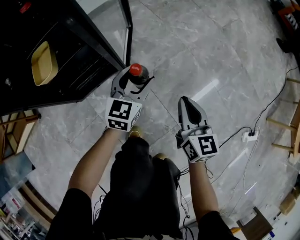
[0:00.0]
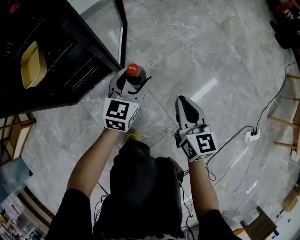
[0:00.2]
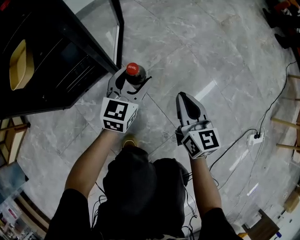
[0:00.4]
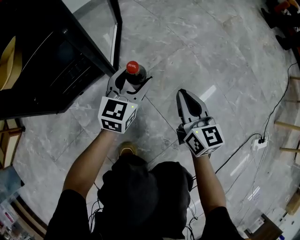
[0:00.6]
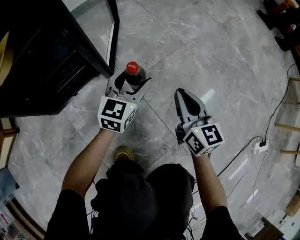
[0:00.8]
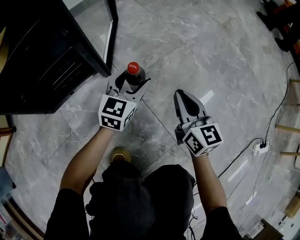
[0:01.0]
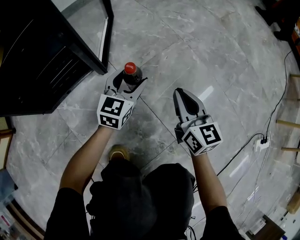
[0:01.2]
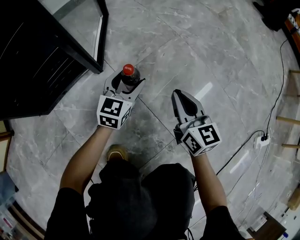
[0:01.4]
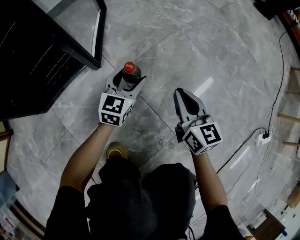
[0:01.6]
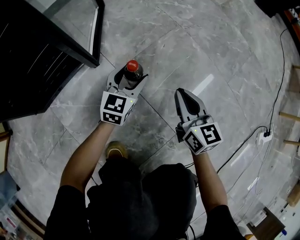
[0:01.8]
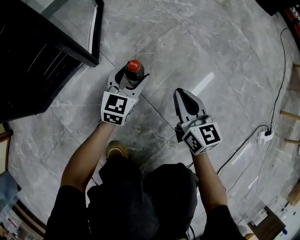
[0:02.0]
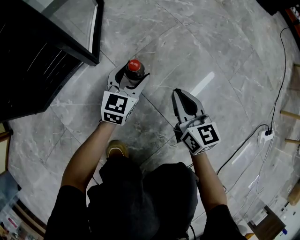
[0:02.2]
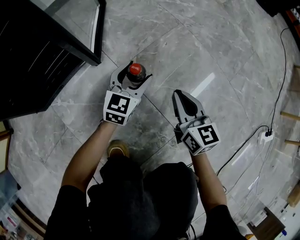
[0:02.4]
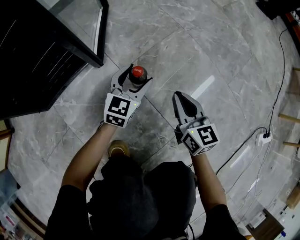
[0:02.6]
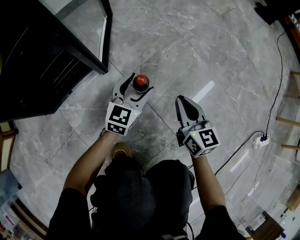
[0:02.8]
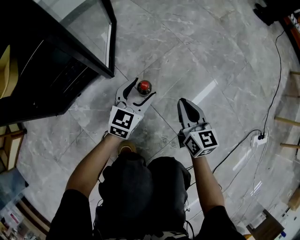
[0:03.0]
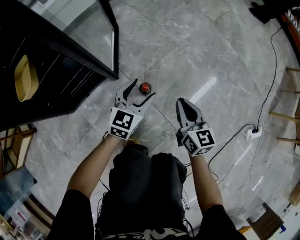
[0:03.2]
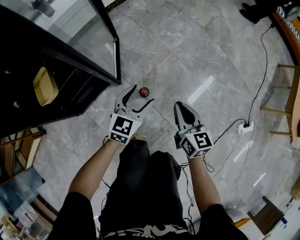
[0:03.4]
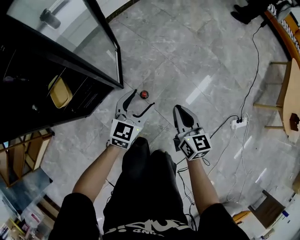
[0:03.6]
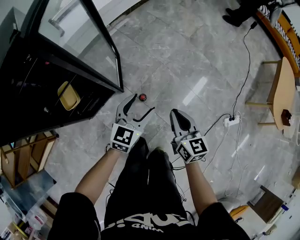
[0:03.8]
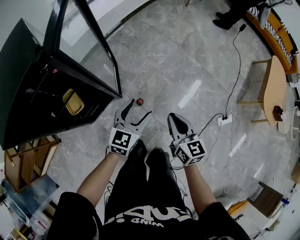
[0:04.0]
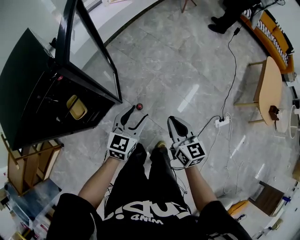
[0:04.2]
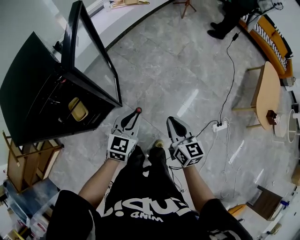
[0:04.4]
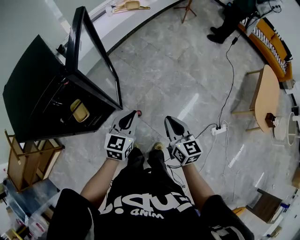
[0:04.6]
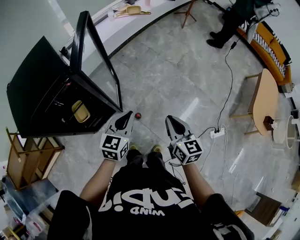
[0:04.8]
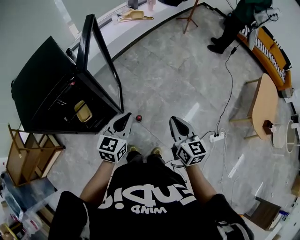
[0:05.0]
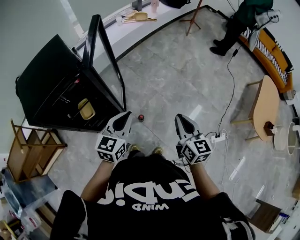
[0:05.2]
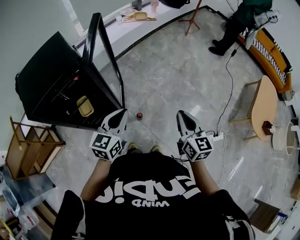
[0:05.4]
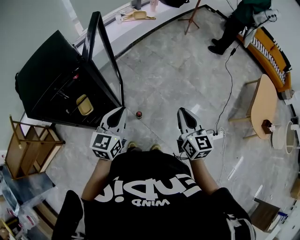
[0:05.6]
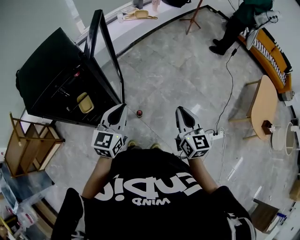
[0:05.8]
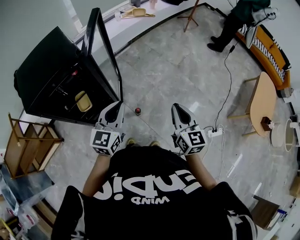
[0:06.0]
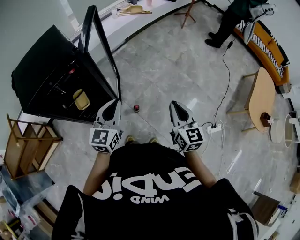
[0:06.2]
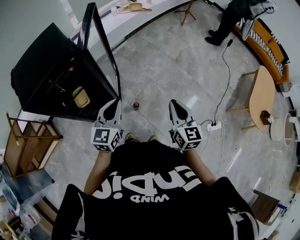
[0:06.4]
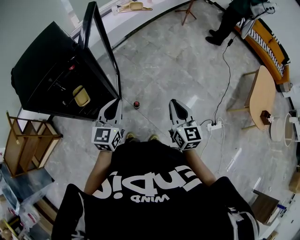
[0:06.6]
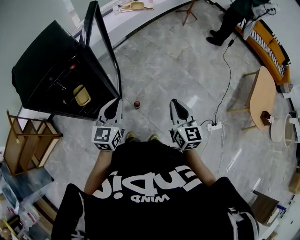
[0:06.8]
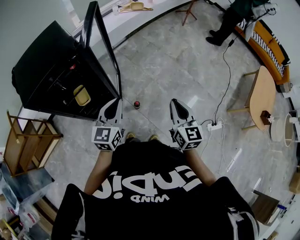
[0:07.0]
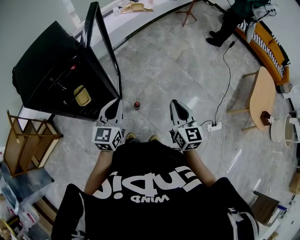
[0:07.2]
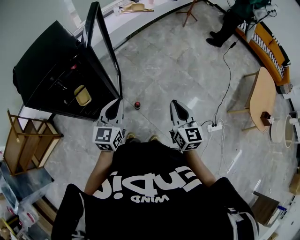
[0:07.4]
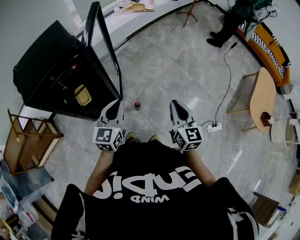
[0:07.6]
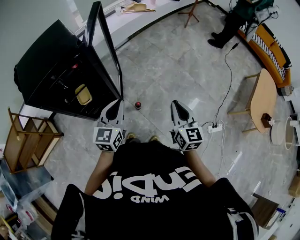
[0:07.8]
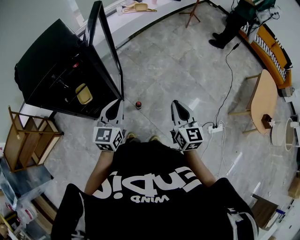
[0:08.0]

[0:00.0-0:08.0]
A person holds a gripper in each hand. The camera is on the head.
0:00.0 to 0:01.6: The two grippers go about 25 cm downward.
0:01.6 to 0:03.2: The two grippers go some 15 cm upward.
0:03.2 to 0:04.8: Both grippers travel together upward, about 60 cm. The left gripper closes.
0:04.8 to 0:06.4: The right gripper ends up some 5 cm from where it was, while the left gripper is displaced backward and upward by roughly 10 cm.
0:06.4 to 0:08.0: The grippers make only small movements.

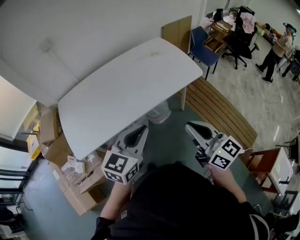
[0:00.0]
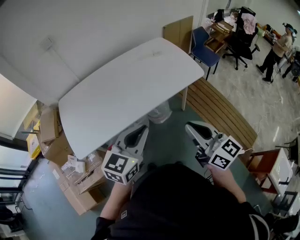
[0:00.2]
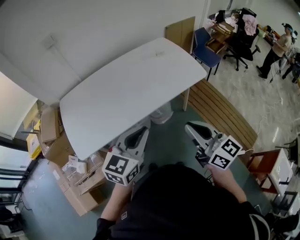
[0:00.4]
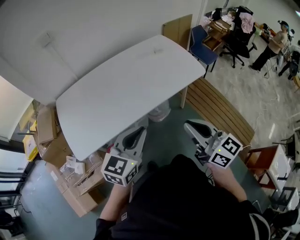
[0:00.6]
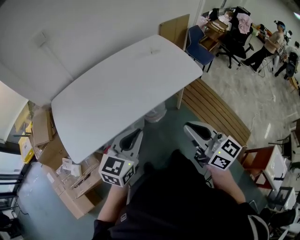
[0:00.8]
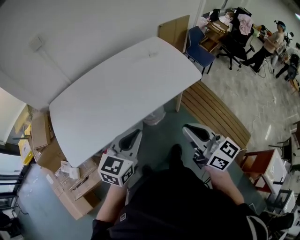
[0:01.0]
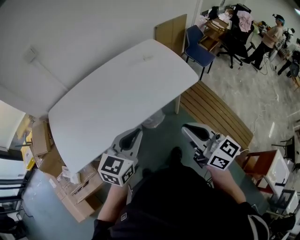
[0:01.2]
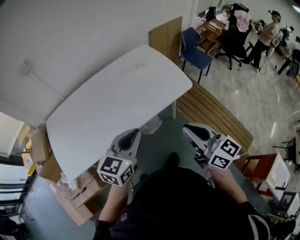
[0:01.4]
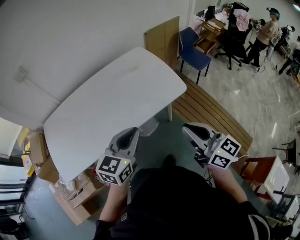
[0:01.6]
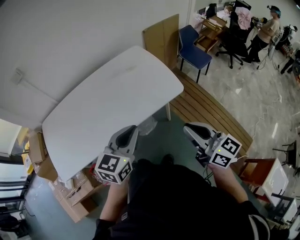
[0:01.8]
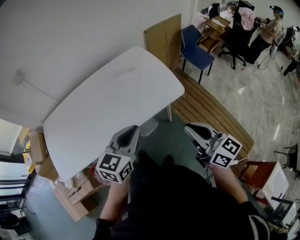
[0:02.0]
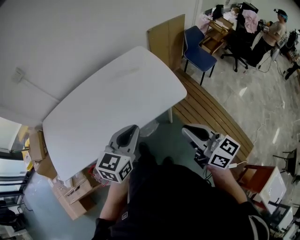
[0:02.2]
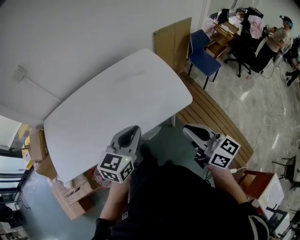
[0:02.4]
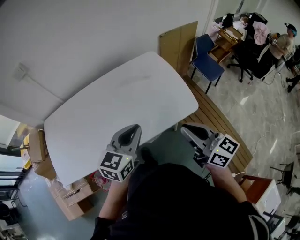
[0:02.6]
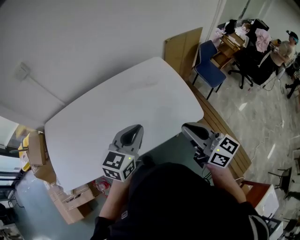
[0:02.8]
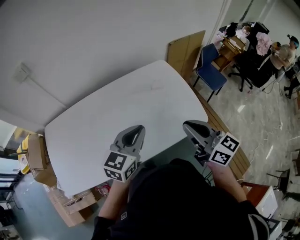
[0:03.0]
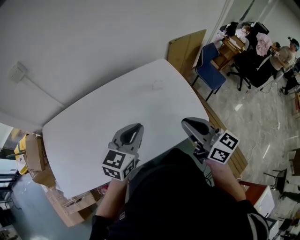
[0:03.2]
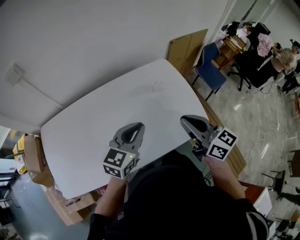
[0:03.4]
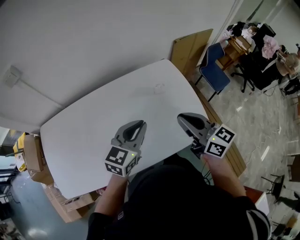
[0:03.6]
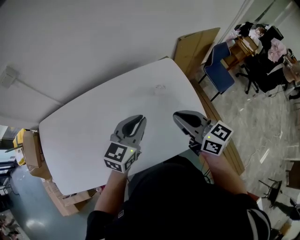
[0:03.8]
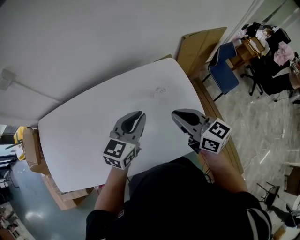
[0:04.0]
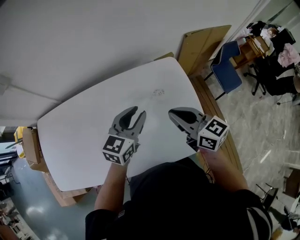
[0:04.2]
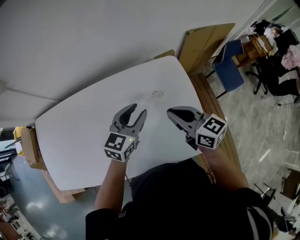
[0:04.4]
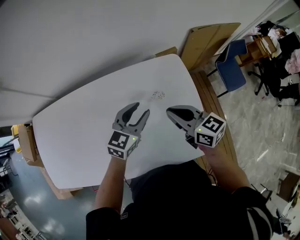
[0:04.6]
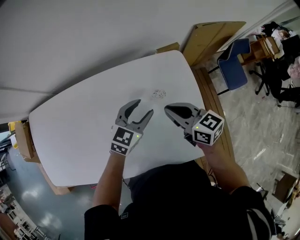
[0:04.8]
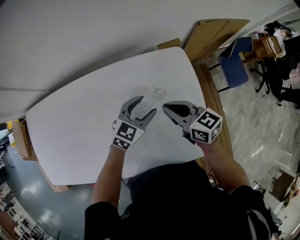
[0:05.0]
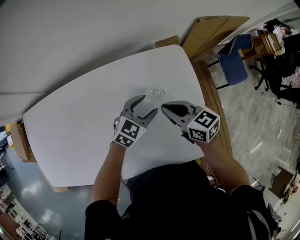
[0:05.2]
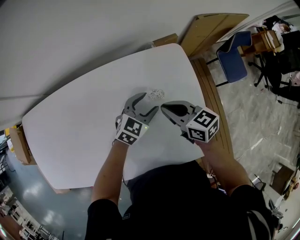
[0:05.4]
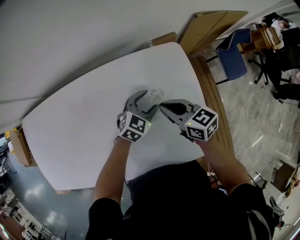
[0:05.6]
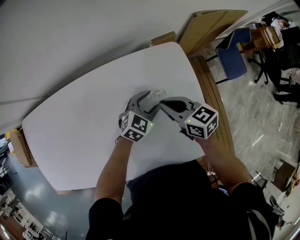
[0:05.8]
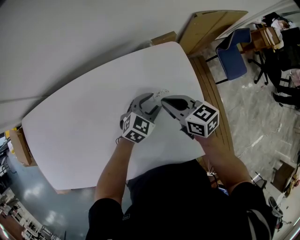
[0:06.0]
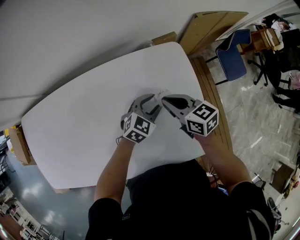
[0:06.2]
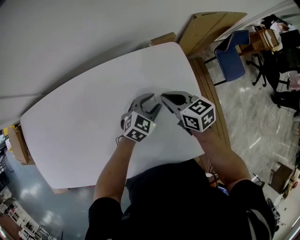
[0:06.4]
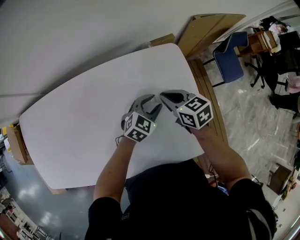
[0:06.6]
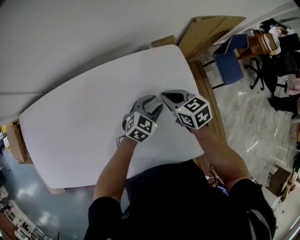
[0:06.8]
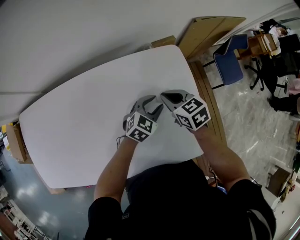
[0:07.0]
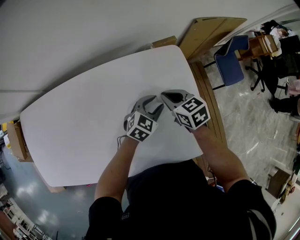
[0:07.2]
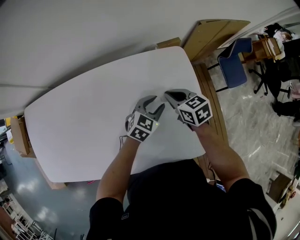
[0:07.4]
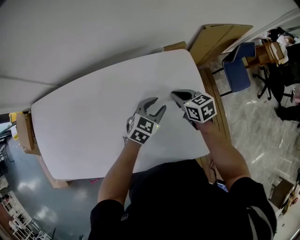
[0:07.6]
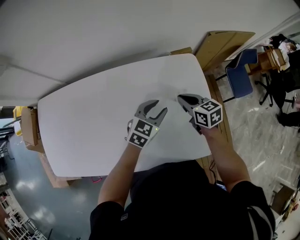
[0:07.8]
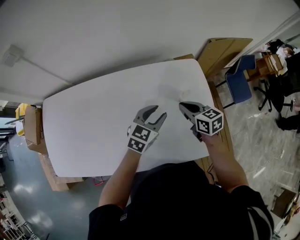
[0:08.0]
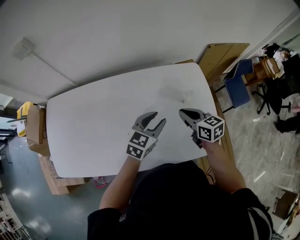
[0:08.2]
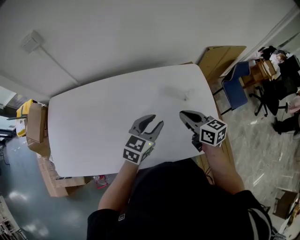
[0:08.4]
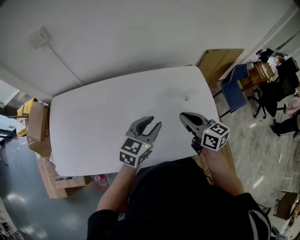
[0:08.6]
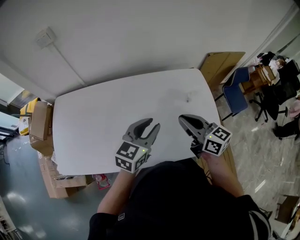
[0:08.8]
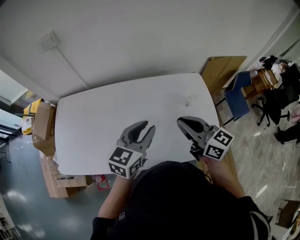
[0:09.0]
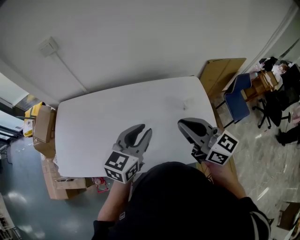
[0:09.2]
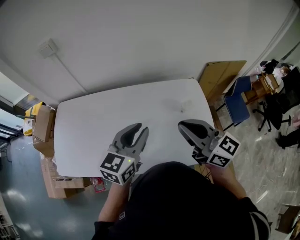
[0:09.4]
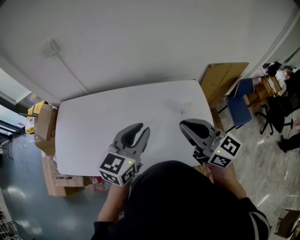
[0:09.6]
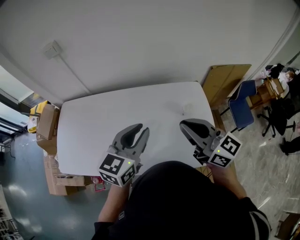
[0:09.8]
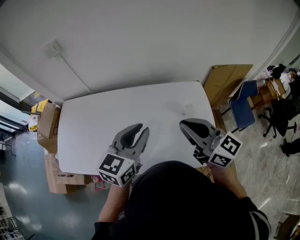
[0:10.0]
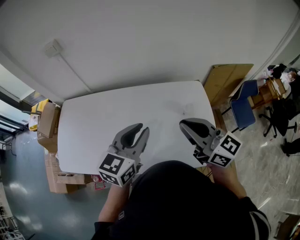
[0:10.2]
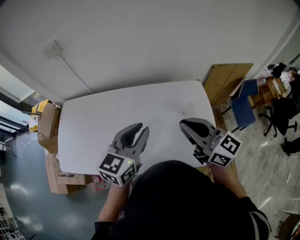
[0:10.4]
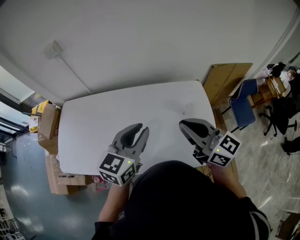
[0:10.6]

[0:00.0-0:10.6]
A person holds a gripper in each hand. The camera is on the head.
0:00.0 to 0:01.6: The left gripper is displaced forward and to the right by roughly 20 cm. The right gripper heads to the right and forward, covering about 20 cm.
0:01.6 to 0:03.0: Both grippers move forward, about 20 cm.
0:03.0 to 0:04.6: The two grippers go approximately 30 cm forward and downward. The left gripper opens its fingers. Meanwhile the right gripper turns by approximately 30 degrees.
0:04.6 to 0:06.0: The right gripper travels downward and forward by approximately 10 cm. The left gripper is displaced downward and to the right by roughly 15 cm, and turns by about 20 degrees.
0:06.0 to 0:07.6: The left gripper shifts by about 5 cm.
0:07.6 to 0:09.0: The left gripper goes approximately 35 cm upward, to the left and backward, and swivels about 30 degrees. Meanwhile the right gripper is displaced upward, backward and to the left by roughly 35 cm, and angles its fingers upward, by some 40 degrees.
0:09.0 to 0:10.6: The left gripper goes some 5 cm upward; the right gripper heads upward and to the right, covering approximately 10 cm.

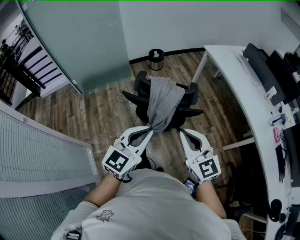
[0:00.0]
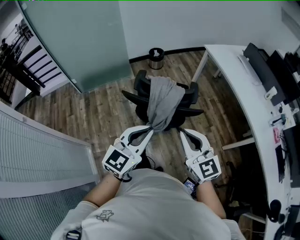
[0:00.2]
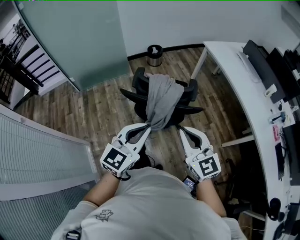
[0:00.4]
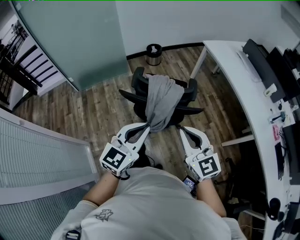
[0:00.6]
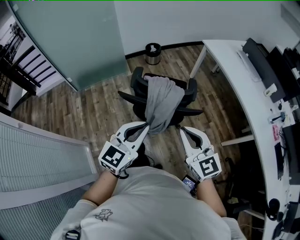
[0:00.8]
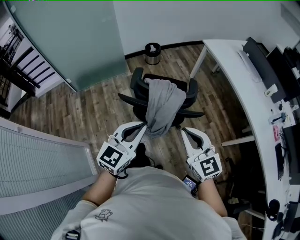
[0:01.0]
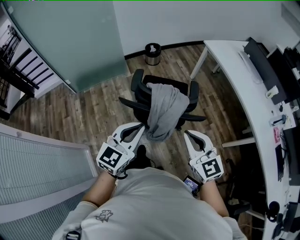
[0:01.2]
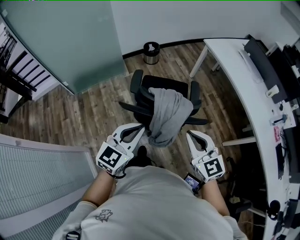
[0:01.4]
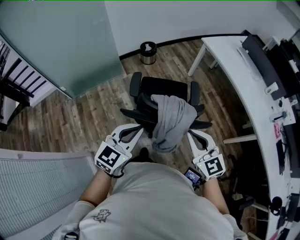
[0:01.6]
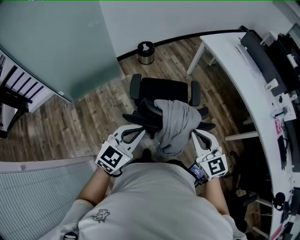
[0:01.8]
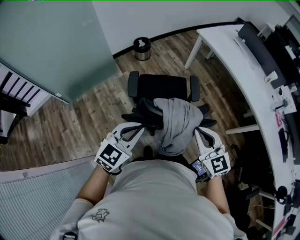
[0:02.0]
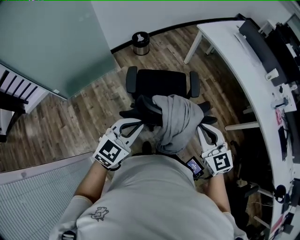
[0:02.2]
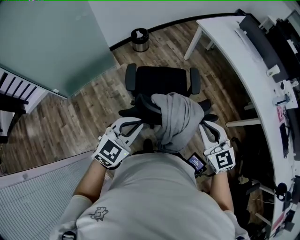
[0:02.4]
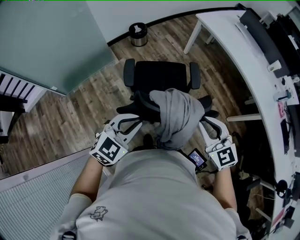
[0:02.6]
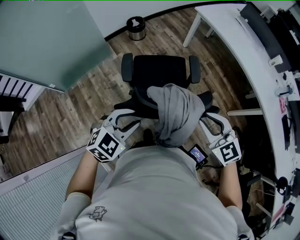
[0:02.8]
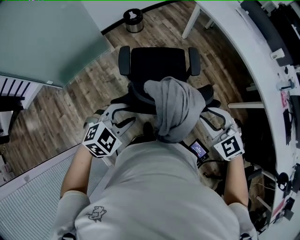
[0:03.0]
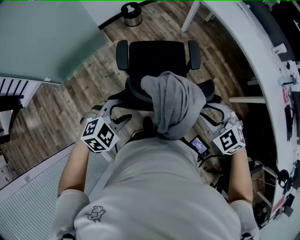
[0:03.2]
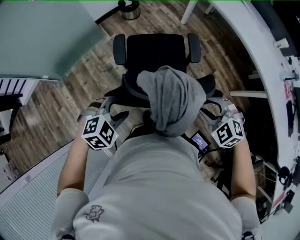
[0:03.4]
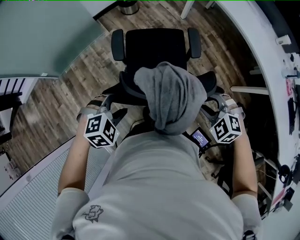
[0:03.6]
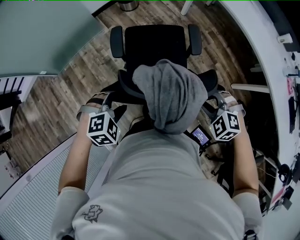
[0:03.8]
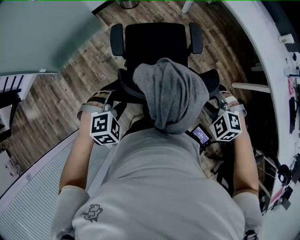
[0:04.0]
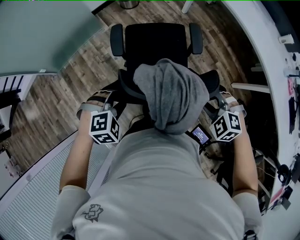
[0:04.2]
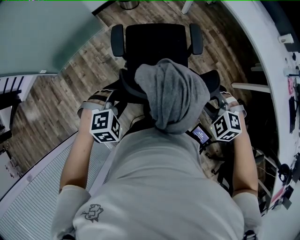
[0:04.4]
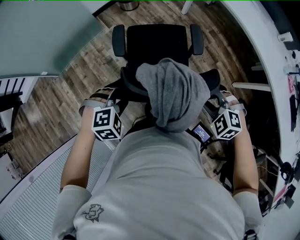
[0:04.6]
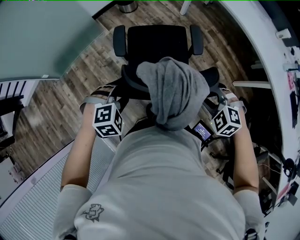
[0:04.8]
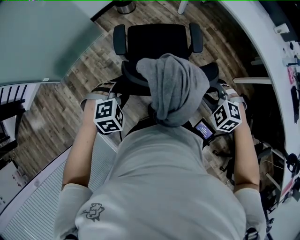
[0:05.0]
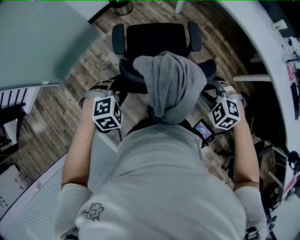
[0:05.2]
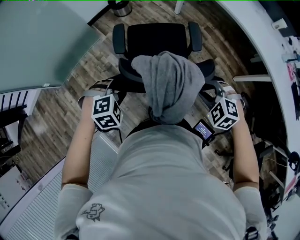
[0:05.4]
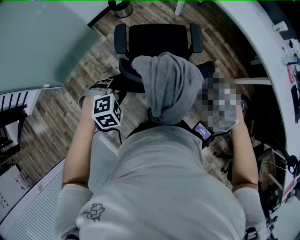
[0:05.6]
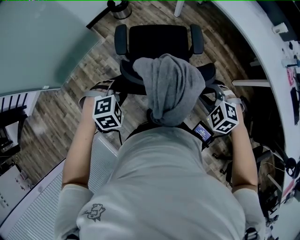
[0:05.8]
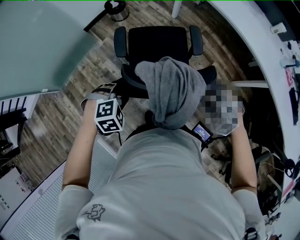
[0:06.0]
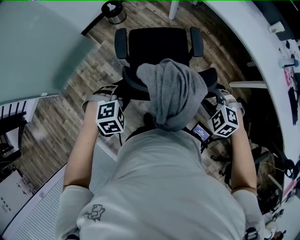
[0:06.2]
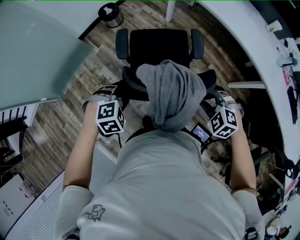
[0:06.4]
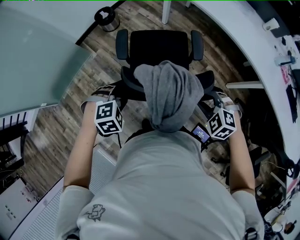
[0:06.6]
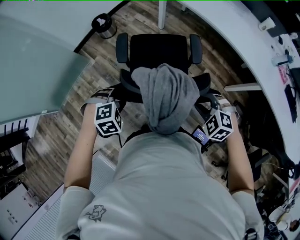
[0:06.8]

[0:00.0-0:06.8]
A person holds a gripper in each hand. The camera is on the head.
0:00.0 to 0:01.4: The right gripper goes about 15 cm forward and downward, while the left gripper goes approximately 15 cm forward and to the left.
0:01.4 to 0:02.8: The left gripper moves forward, downward and to the left, some 15 cm, swivels about 40 degrees, and opens up, while the right gripper is displaced forward and downward by roughly 15 cm, and opens its fingers.
0:02.8 to 0:04.0: Both grippers move downward, about 15 cm. The right gripper angles its fingers downward, by some 30 degrees. The left gripper changes its angle by some 30 degrees.
0:04.0 to 0:05.4: The left gripper moves forward, about 5 cm.
0:05.4 to 0:06.8: The right gripper is displaced to the right and forward by some 15 cm. The left gripper shifts about 20 cm forward and to the right.
